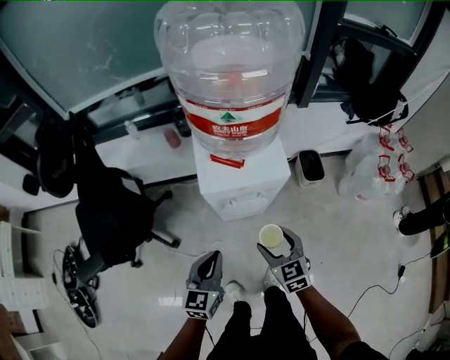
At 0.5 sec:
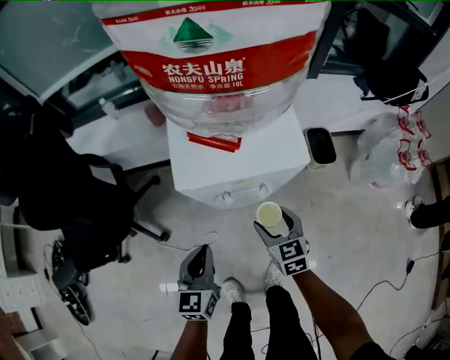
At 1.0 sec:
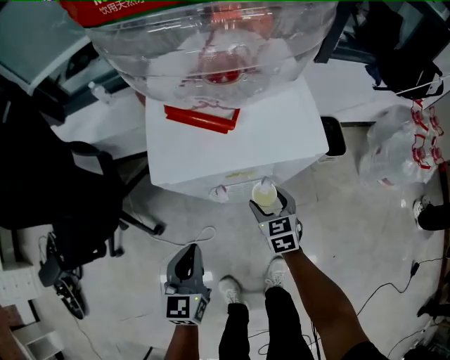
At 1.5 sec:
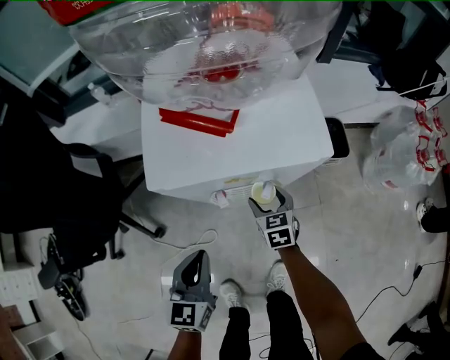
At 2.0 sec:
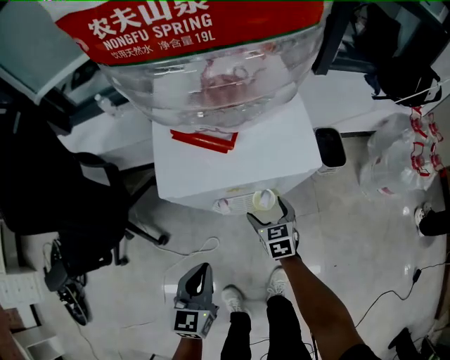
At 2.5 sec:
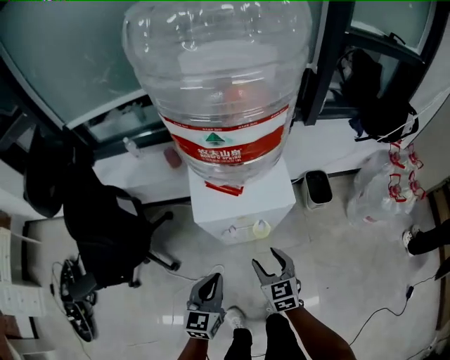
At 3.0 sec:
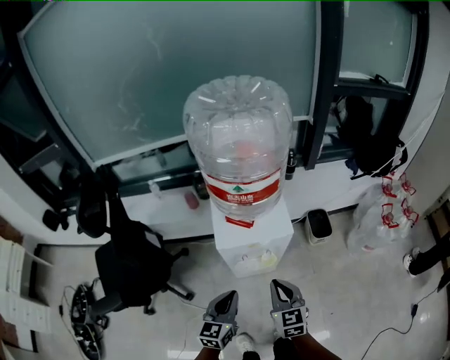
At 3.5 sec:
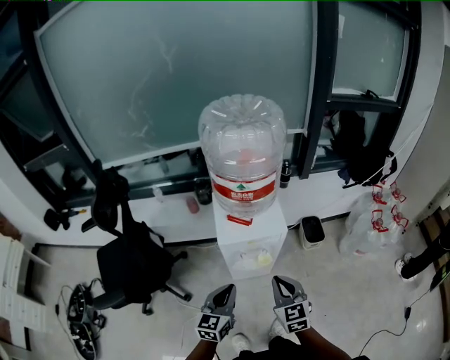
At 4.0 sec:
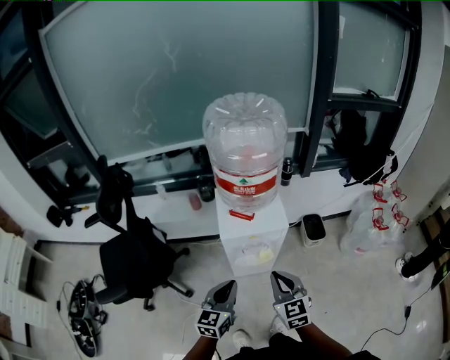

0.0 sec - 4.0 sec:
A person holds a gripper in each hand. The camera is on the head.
0.0 sec - 2.0 sec: The right gripper moves downward and forward, some 30 cm; the left gripper shifts roughly 15 cm downward.
2.0 sec - 4.0 sec: The right gripper shifts about 40 cm upward and backward, changes its angle by about 20 degrees, and closes its fingers. The left gripper moves upward, approximately 25 cm, and changes its angle by roughly 20 degrees.

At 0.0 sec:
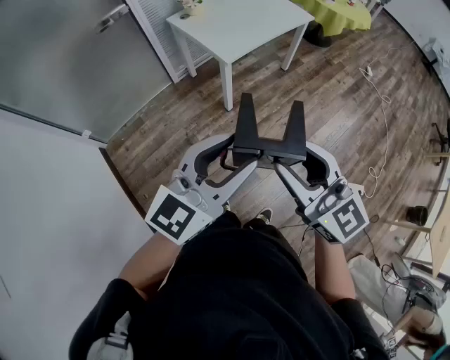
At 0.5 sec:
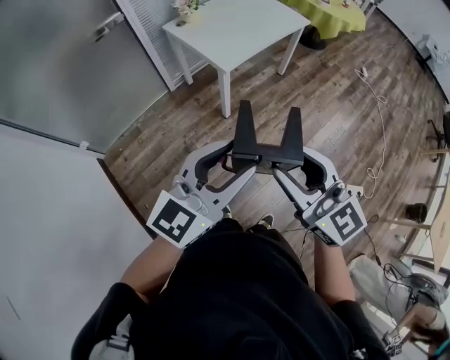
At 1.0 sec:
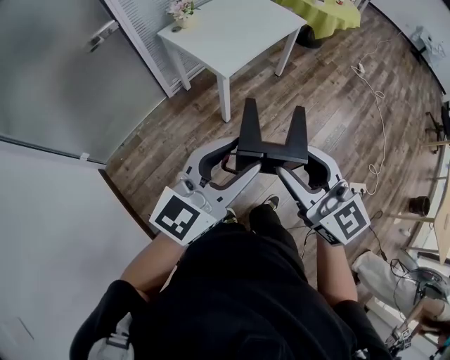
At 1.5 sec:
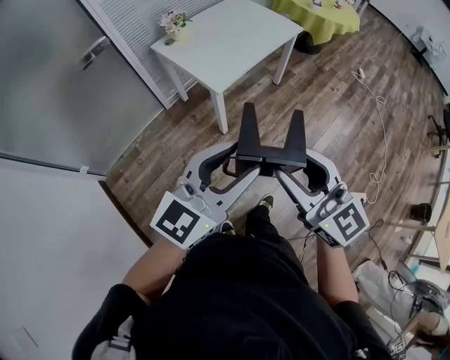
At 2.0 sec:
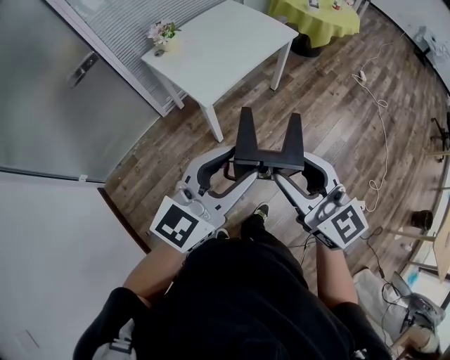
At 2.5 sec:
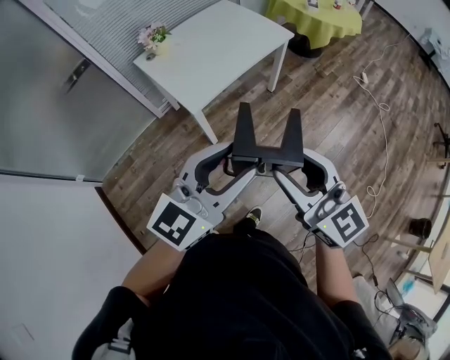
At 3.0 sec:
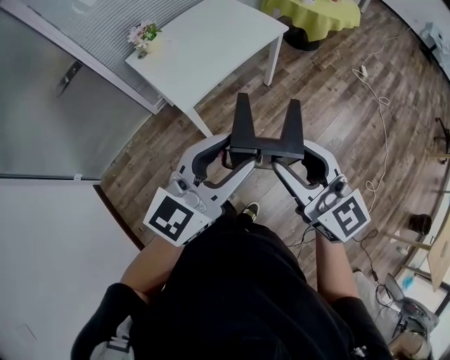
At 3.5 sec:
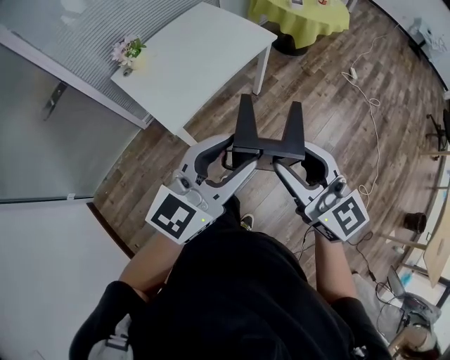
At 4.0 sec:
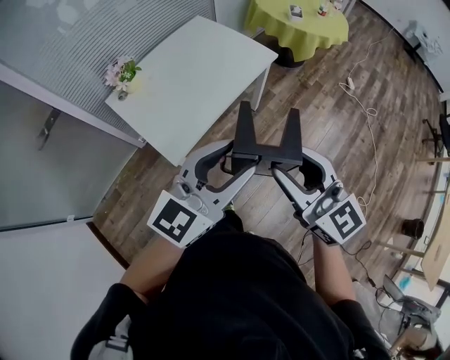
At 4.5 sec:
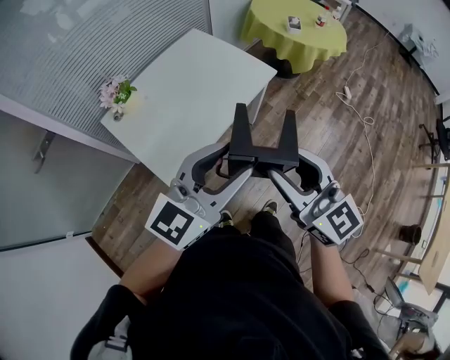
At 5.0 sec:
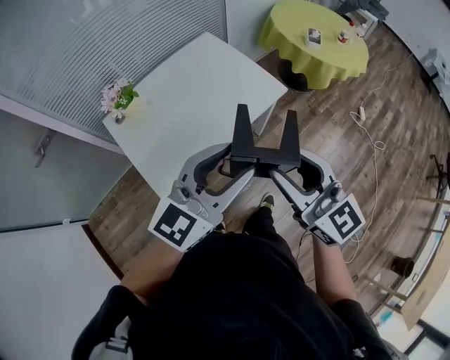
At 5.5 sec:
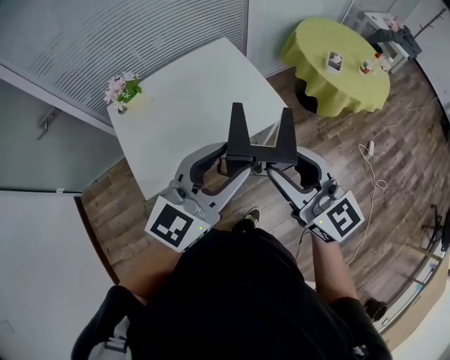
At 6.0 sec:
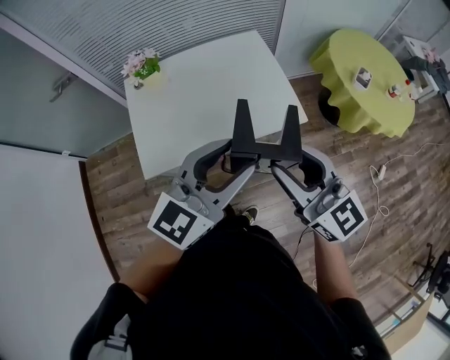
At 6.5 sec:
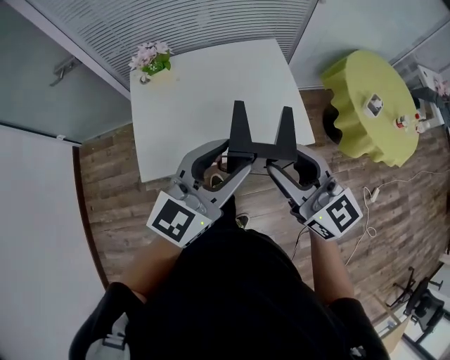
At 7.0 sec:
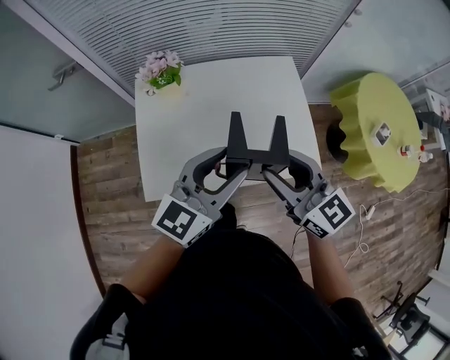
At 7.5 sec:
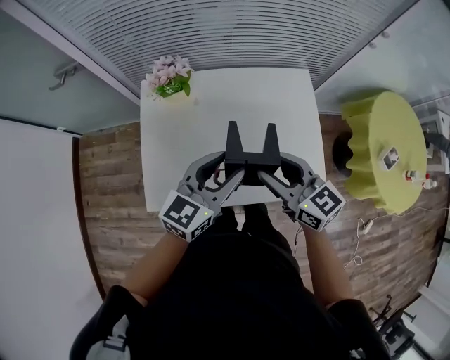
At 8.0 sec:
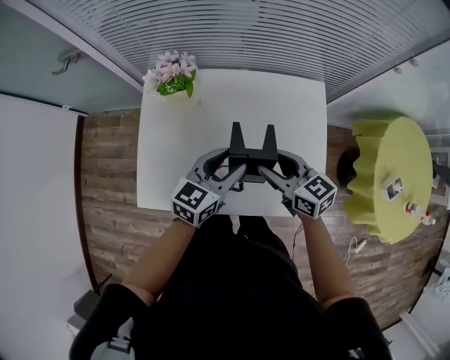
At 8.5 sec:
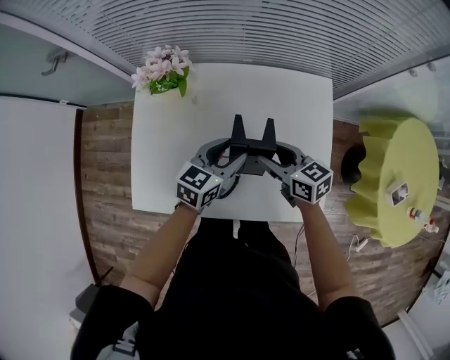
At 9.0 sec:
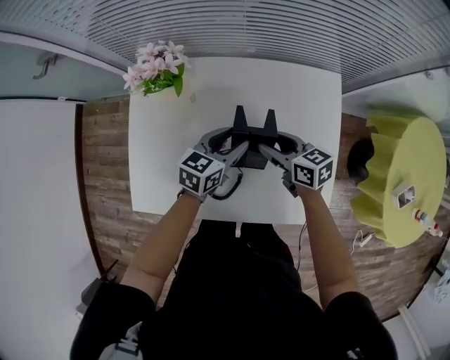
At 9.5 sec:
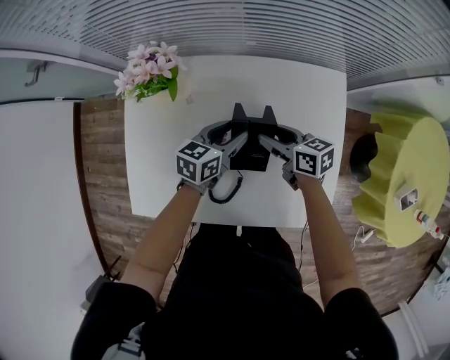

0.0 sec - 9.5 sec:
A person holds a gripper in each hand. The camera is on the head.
0.0 sec - 2.0 sec: The grippers both shift forward by approximately 20 cm.
2.0 sec - 4.0 sec: The two grippers go about 30 cm forward.
4.0 sec - 5.5 sec: The left gripper travels forward and to the right by roughly 30 cm, and swivels some 20 degrees; the right gripper shifts about 30 cm forward, and changes its angle by about 20 degrees.
5.5 sec - 7.5 sec: The right gripper ends up approximately 35 cm from where it was, and changes its angle by approximately 40 degrees; the left gripper changes place by approximately 35 cm, and rotates about 30 degrees.
7.5 sec - 9.5 sec: The two grippers go some 30 cm downward and forward. The left gripper changes its angle by some 30 degrees; the right gripper changes its angle by approximately 30 degrees.

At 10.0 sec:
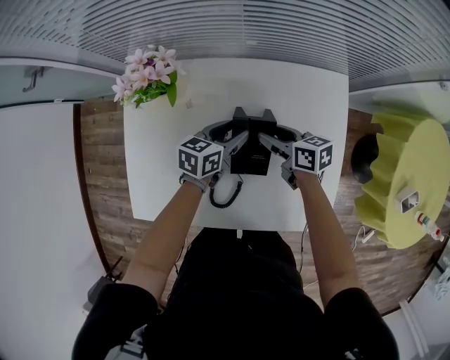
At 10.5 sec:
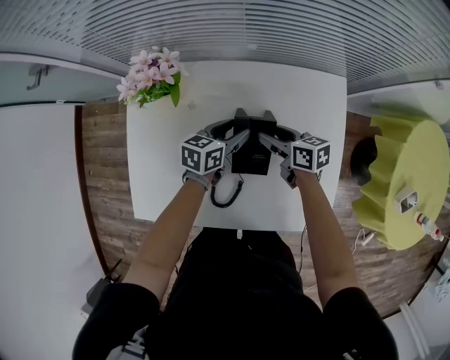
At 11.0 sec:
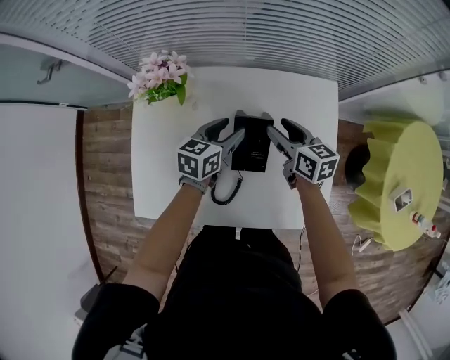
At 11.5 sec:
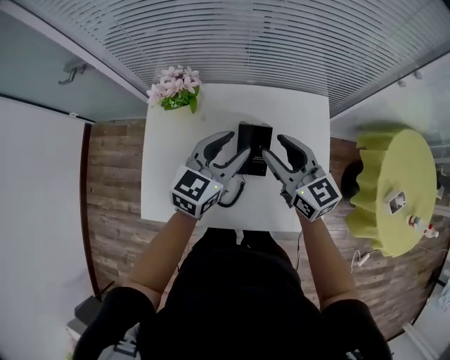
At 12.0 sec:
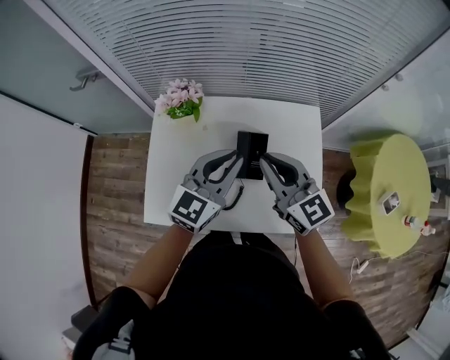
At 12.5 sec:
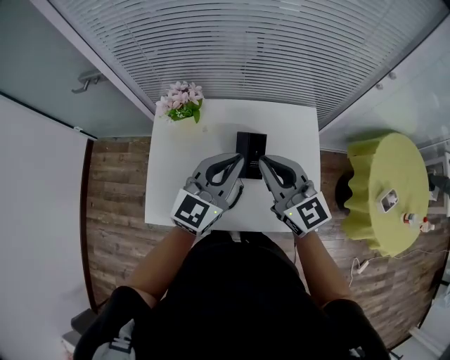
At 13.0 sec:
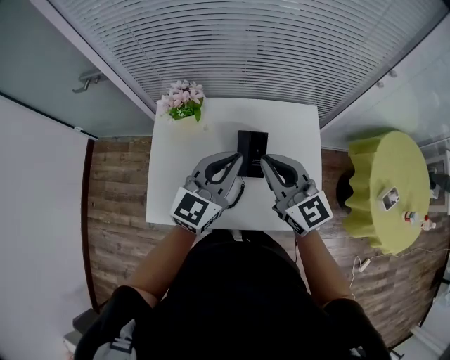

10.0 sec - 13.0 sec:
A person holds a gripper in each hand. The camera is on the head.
10.0 sec - 11.5 sec: The grippers both shift upward by roughly 25 cm. The left gripper turns by roughly 30 degrees, while the right gripper changes its angle by some 40 degrees.
11.5 sec - 13.0 sec: The two grippers go about 10 cm upward and backward. The left gripper closes its fingers; the right gripper closes up.

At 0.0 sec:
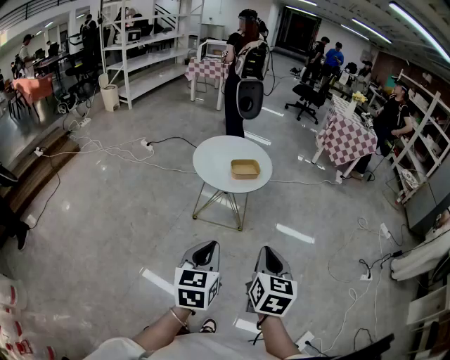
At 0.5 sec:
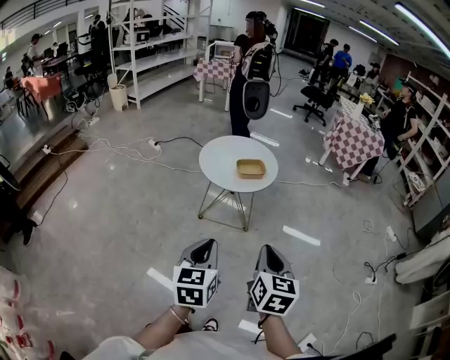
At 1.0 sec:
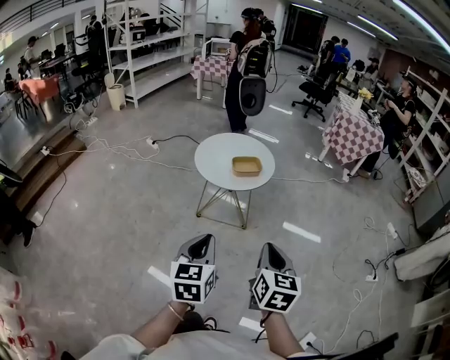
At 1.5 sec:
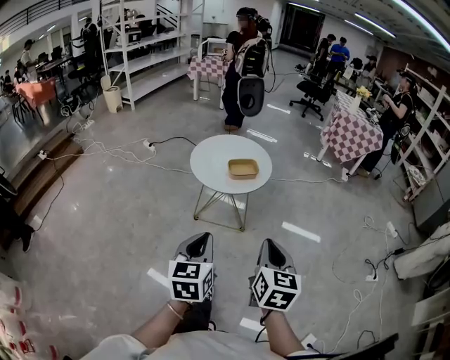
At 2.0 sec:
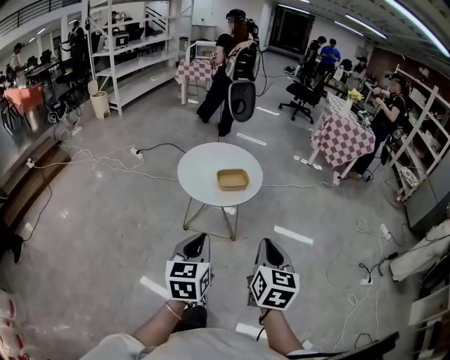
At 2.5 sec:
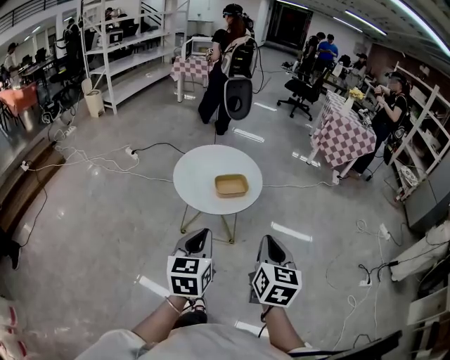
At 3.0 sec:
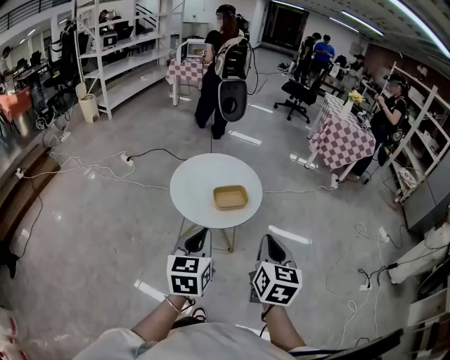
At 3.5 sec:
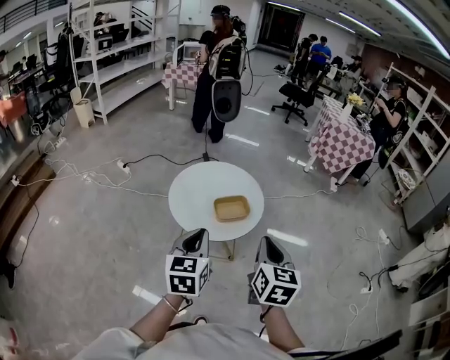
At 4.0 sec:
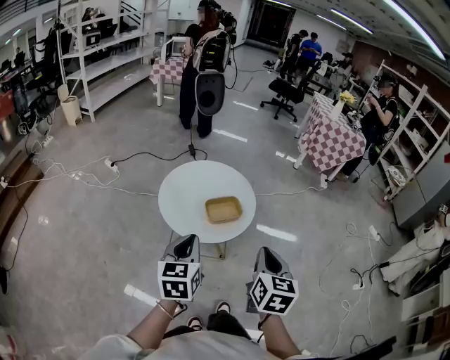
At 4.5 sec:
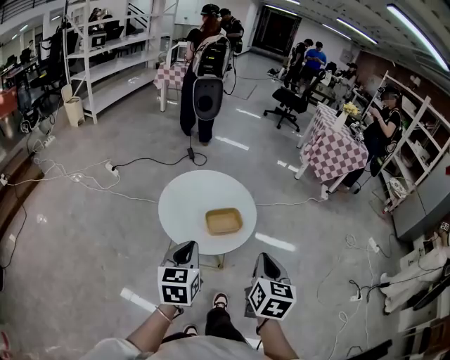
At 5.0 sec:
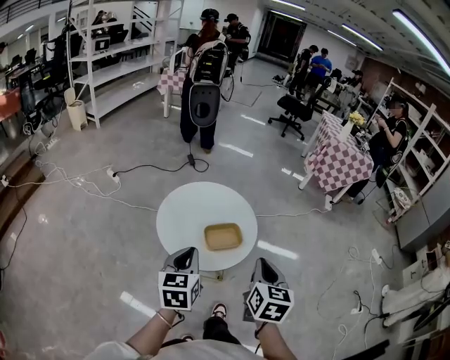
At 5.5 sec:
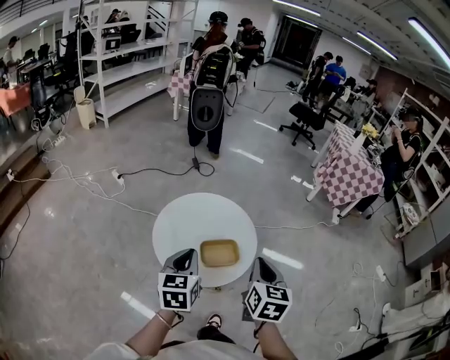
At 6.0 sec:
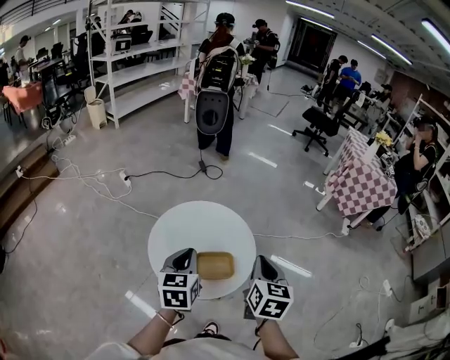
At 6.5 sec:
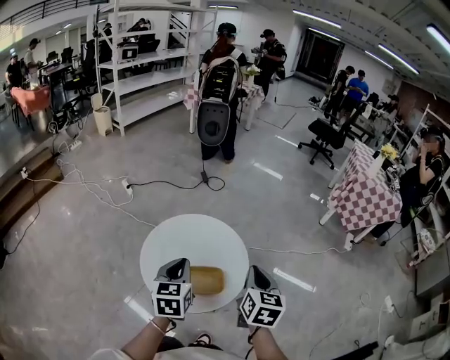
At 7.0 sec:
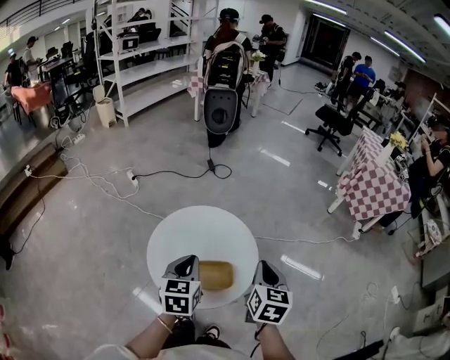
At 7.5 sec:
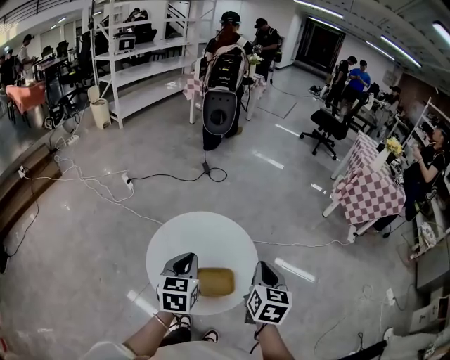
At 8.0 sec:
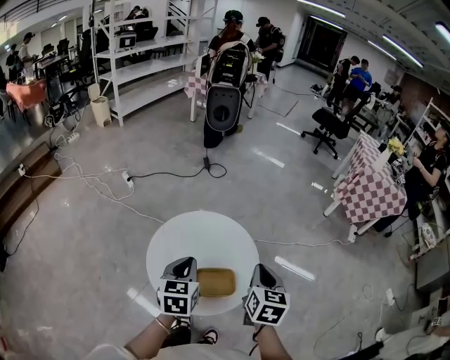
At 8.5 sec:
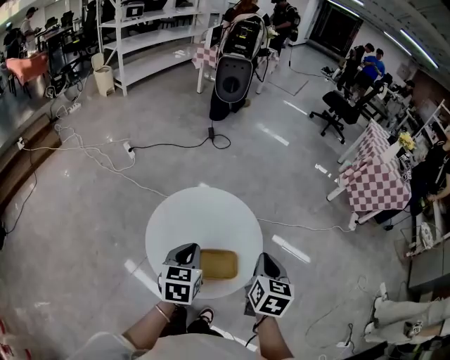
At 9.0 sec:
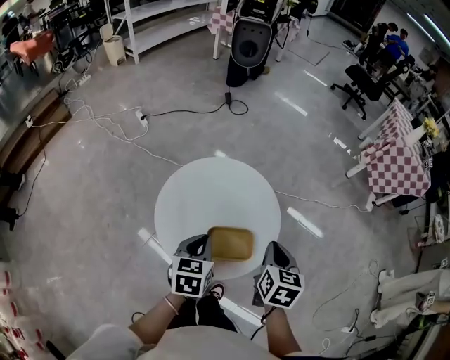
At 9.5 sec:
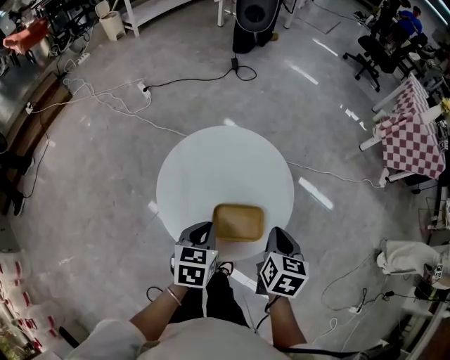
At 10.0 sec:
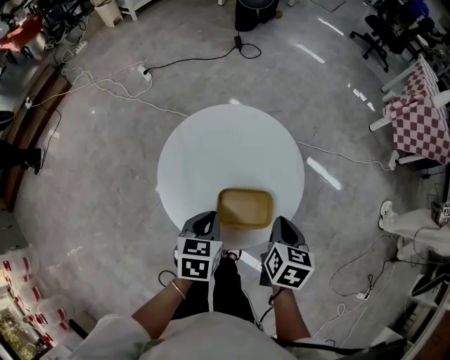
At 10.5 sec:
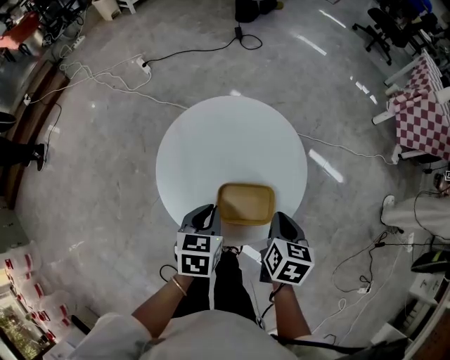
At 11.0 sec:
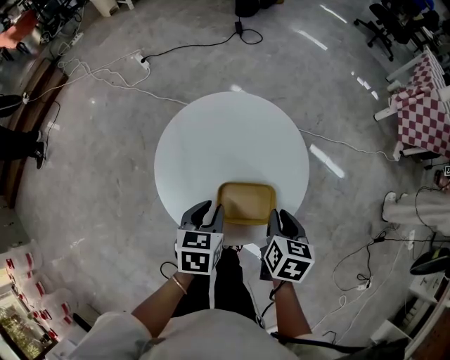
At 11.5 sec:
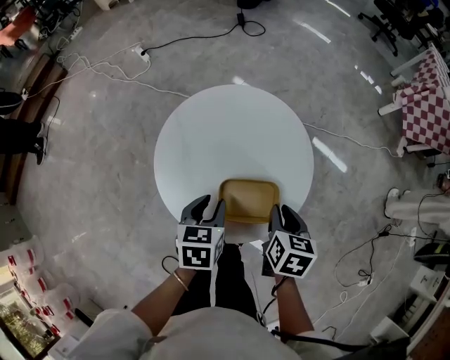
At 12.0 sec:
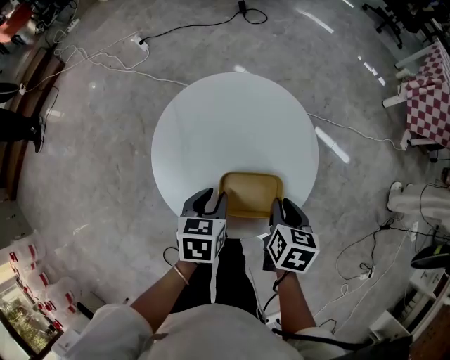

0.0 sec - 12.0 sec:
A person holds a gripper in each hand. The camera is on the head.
0.0 sec - 2.0 sec: The two grippers go about 10 cm forward.
2.0 sec - 4.0 sec: The two grippers go approximately 20 cm forward.
4.0 sec - 6.0 sec: The two grippers go some 20 cm forward.
6.0 sec - 8.0 sec: The left gripper moves about 5 cm. Meanwhile the right gripper travels forward by approximately 5 cm.
8.0 sec - 10.0 sec: The left gripper travels downward and backward by some 15 cm, and swivels some 20 degrees, while the right gripper goes some 15 cm downward, and turns by about 20 degrees.
10.0 sec - 12.0 sec: The left gripper opens its fingers. Meanwhile the right gripper moves some 5 cm.
